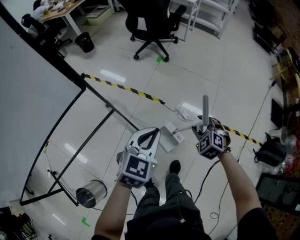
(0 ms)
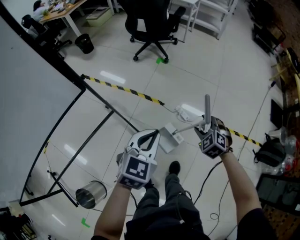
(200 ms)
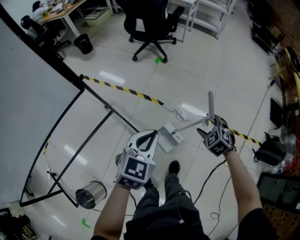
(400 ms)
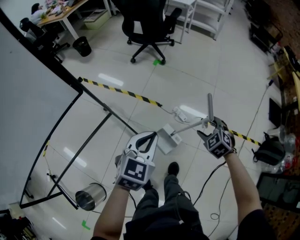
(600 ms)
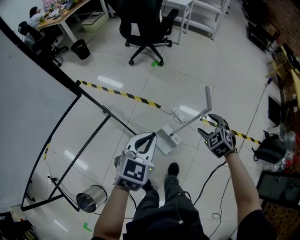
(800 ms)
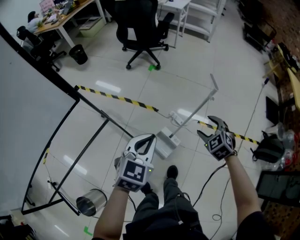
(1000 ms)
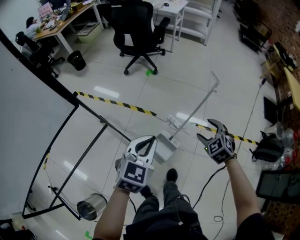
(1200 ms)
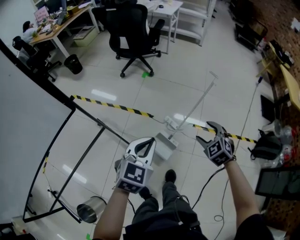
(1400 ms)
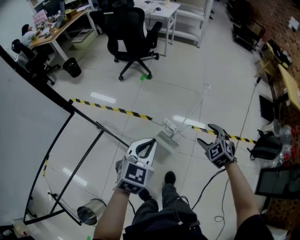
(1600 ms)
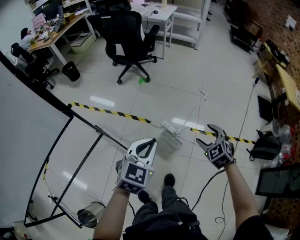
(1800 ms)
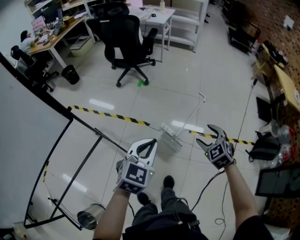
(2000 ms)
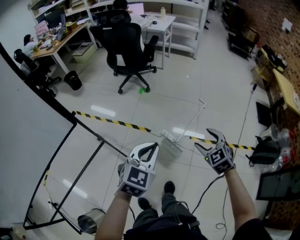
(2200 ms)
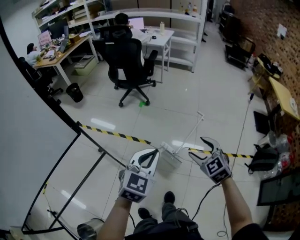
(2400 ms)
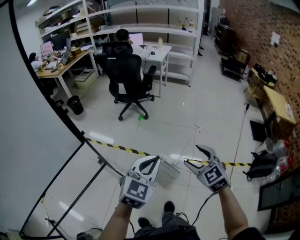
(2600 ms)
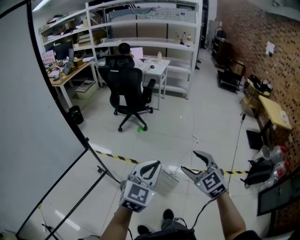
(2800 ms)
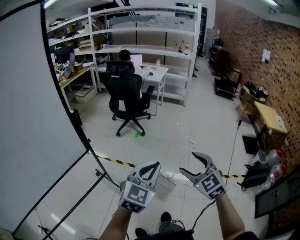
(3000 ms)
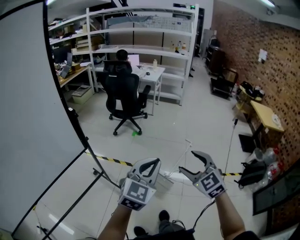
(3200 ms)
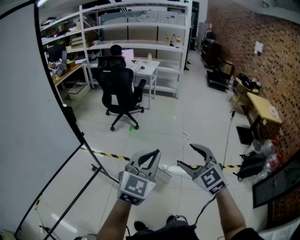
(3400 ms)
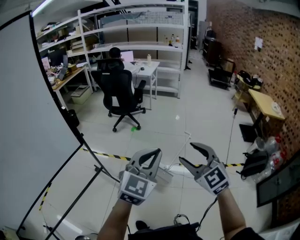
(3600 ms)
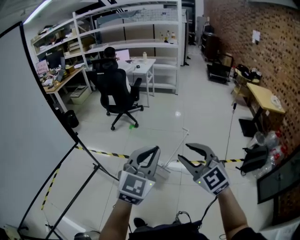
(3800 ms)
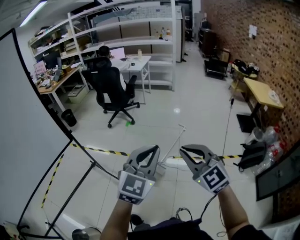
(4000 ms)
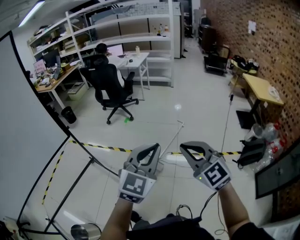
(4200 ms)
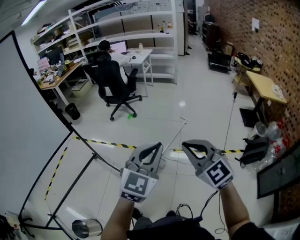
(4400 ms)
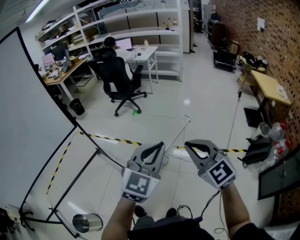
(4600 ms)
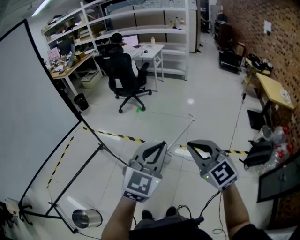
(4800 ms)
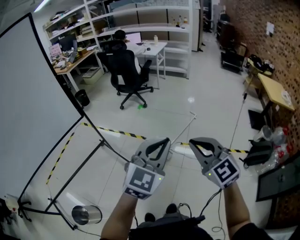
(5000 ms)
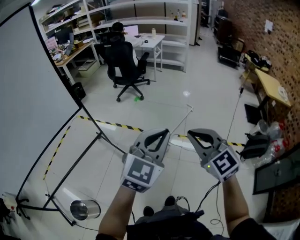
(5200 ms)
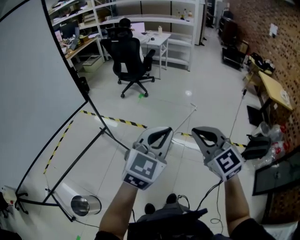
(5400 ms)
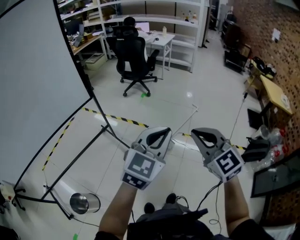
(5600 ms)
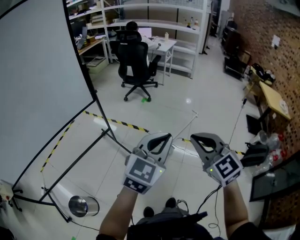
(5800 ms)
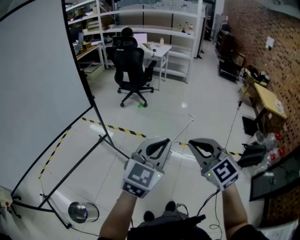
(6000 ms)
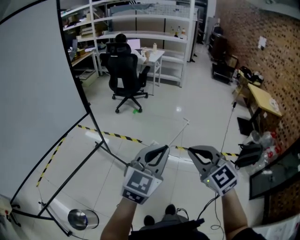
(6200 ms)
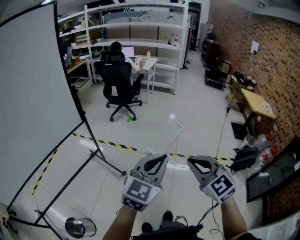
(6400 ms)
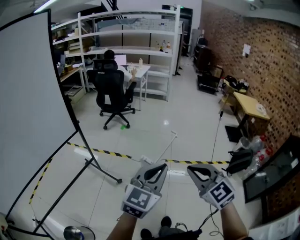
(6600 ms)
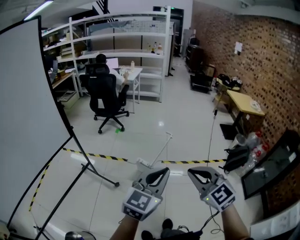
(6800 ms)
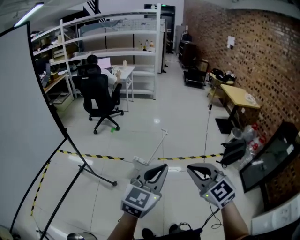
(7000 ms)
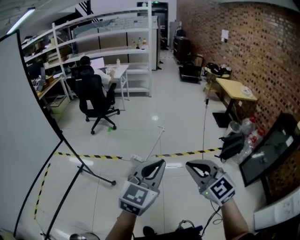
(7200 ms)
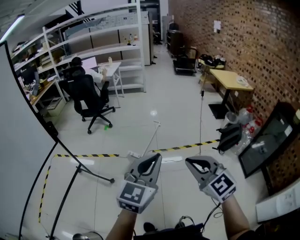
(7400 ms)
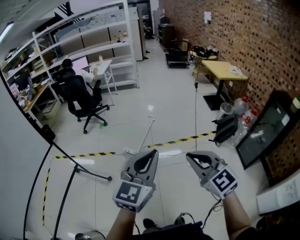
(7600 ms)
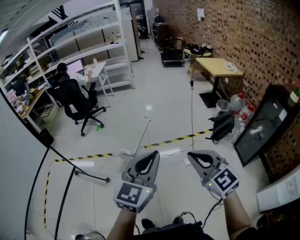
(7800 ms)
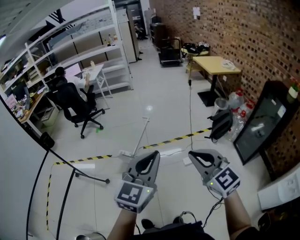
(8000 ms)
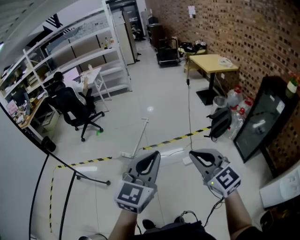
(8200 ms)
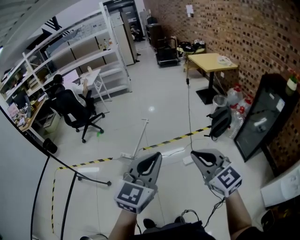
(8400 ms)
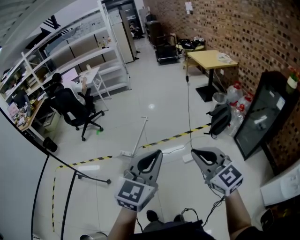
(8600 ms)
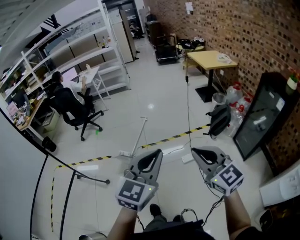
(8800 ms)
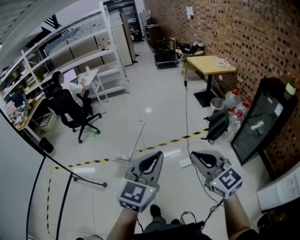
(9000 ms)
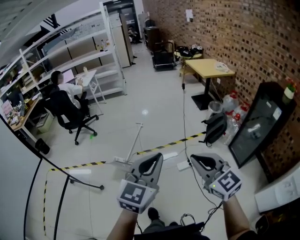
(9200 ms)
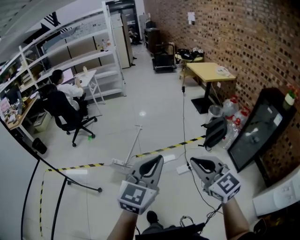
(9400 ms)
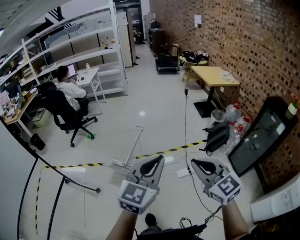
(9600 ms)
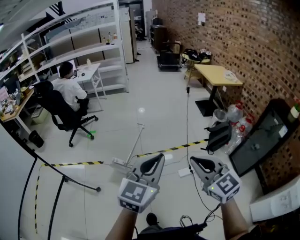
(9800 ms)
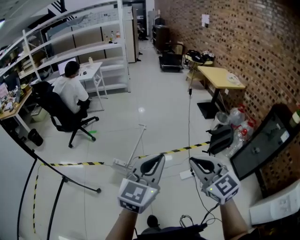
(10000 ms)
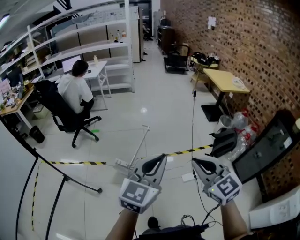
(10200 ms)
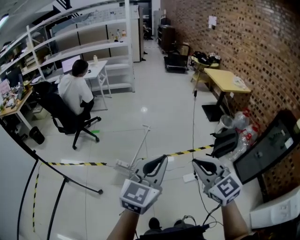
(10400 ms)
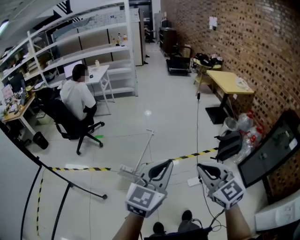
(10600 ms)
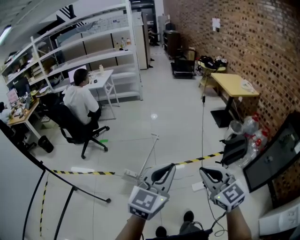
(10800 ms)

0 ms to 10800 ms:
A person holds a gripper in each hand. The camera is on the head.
0 ms to 1600 ms: The right gripper travels to the right and upward by approximately 15 cm. The left gripper moves to the right, approximately 5 cm.
1600 ms to 3000 ms: The two grippers go about 25 cm upward and backward. The right gripper changes its angle by some 20 degrees.
3000 ms to 4600 ms: Both grippers move to the right and backward, approximately 25 cm. The right gripper closes up.
4600 ms to 6200 ms: Both grippers travel together to the left and backward, some 15 cm.
6200 ms to 7800 ms: The two grippers go about 30 cm to the right. The right gripper swivels some 20 degrees.
7800 ms to 9200 ms: Both grippers move to the right, approximately 10 cm.
9200 ms to 10800 ms: The two grippers go roughly 20 cm forward and to the left.

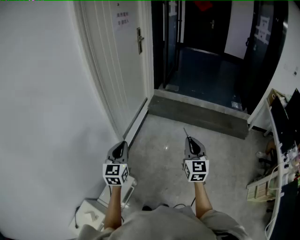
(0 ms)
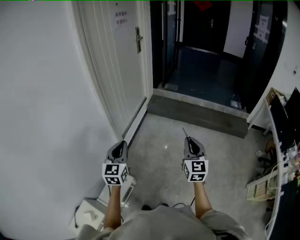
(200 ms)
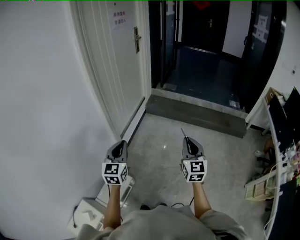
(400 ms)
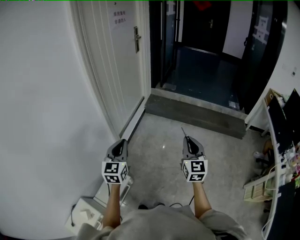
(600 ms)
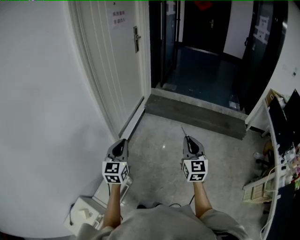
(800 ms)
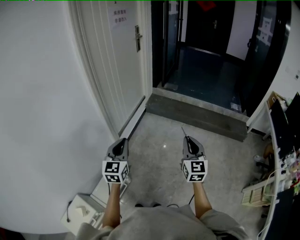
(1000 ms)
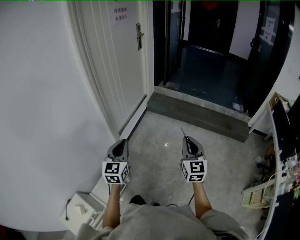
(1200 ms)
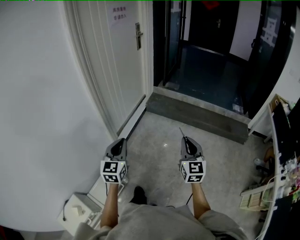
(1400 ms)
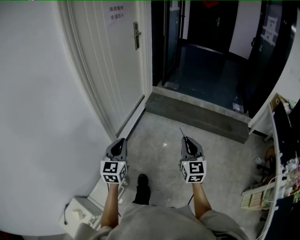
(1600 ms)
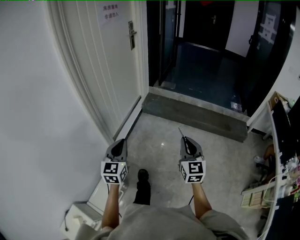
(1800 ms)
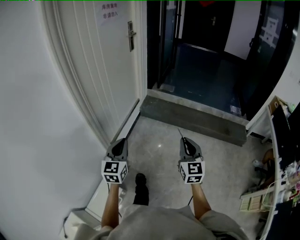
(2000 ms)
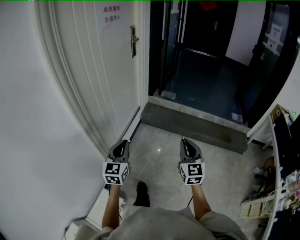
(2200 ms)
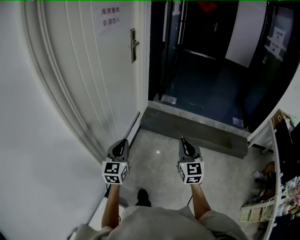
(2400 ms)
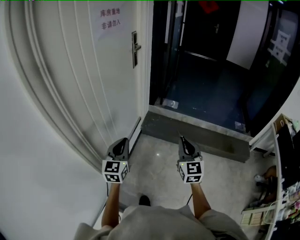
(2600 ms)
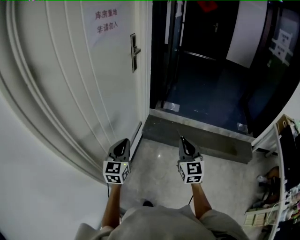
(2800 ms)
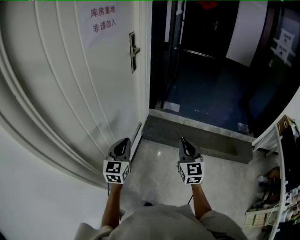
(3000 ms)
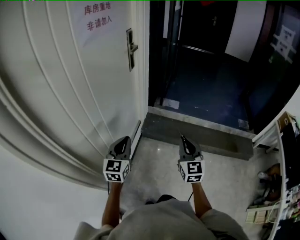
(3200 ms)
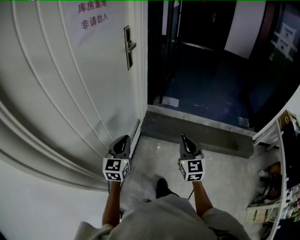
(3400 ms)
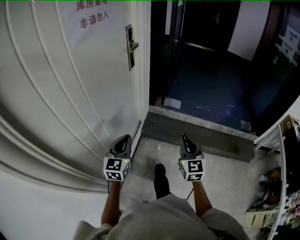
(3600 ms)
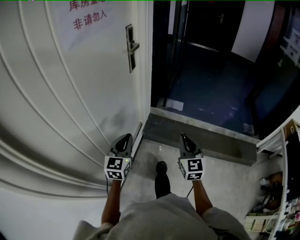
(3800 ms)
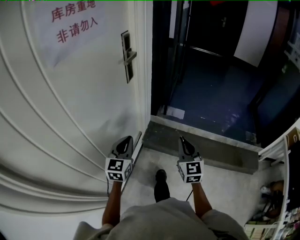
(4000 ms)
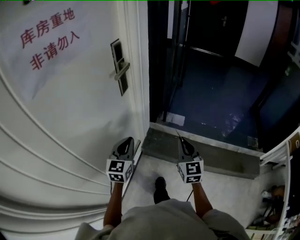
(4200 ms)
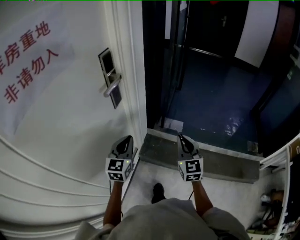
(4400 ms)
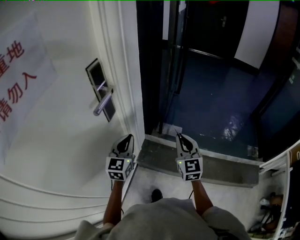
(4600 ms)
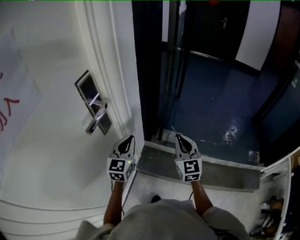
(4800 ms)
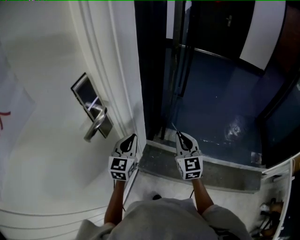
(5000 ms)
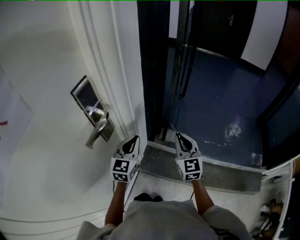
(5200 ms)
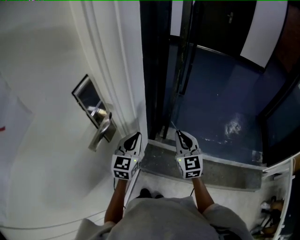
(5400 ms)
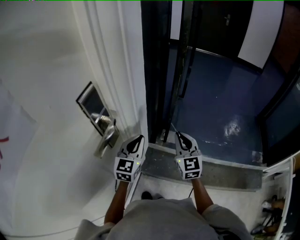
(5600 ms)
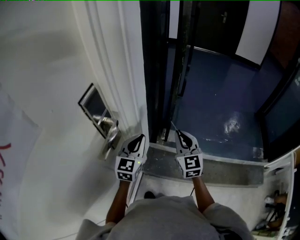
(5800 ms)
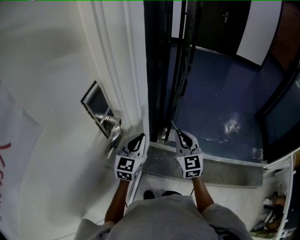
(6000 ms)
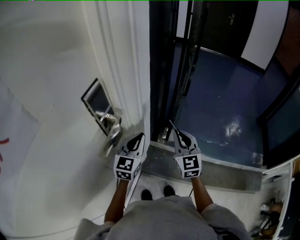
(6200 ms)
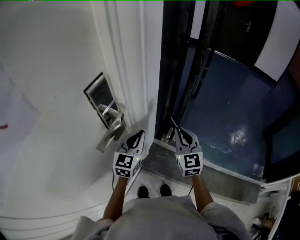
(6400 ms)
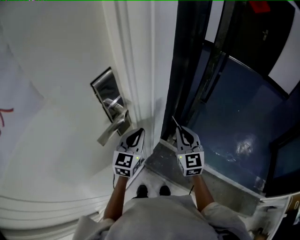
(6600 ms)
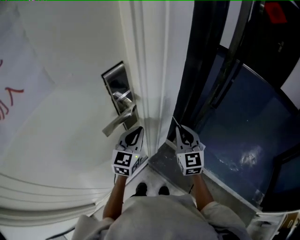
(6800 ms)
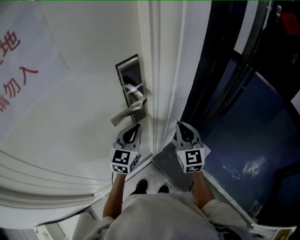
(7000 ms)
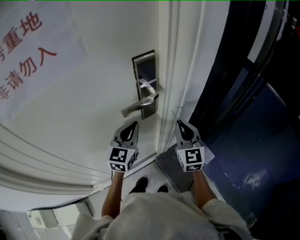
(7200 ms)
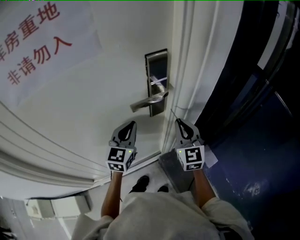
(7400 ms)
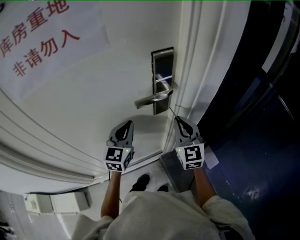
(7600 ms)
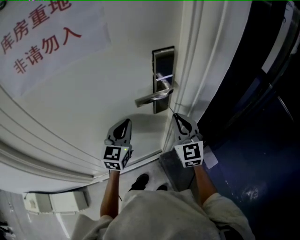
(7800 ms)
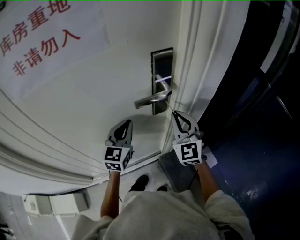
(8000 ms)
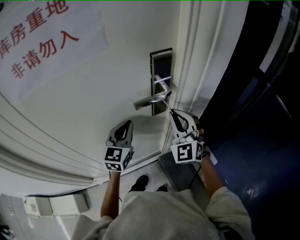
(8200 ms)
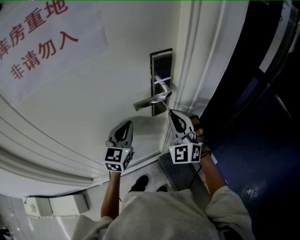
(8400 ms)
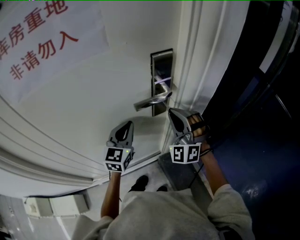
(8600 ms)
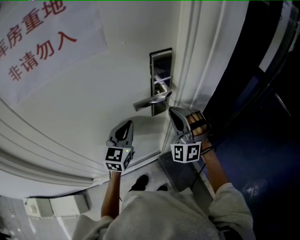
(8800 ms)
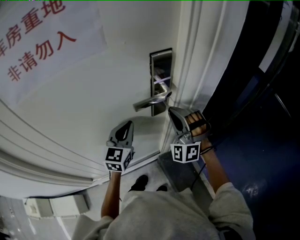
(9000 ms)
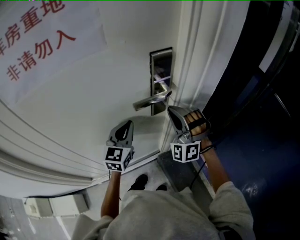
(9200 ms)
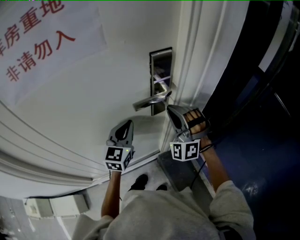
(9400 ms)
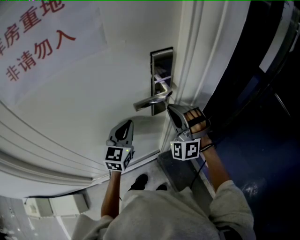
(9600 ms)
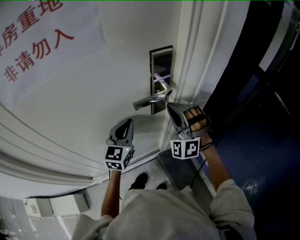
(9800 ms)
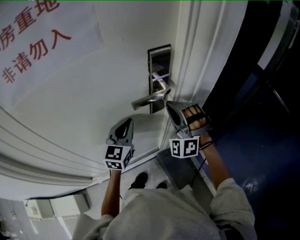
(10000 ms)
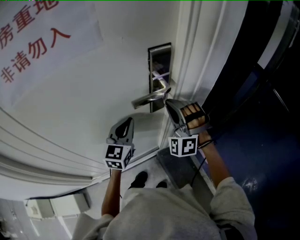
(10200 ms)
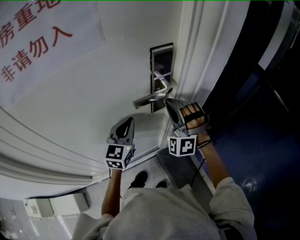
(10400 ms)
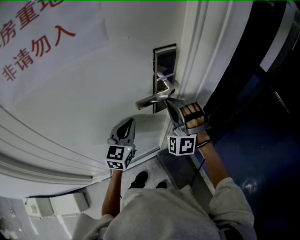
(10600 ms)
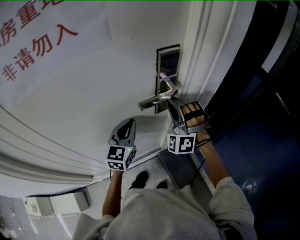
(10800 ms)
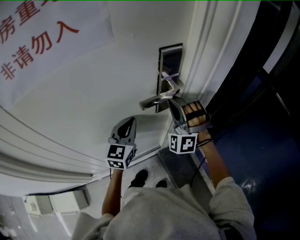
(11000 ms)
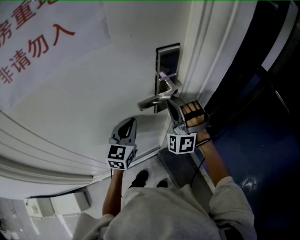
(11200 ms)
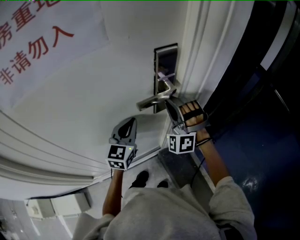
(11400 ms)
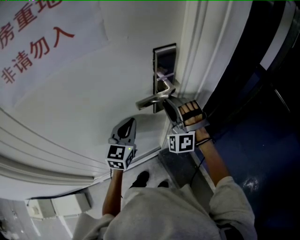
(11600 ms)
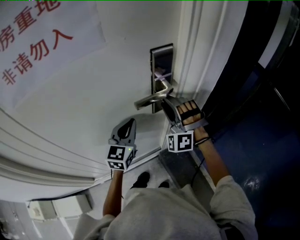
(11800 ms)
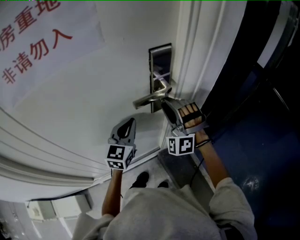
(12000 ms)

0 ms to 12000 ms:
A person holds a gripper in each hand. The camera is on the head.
0 ms to 1600 ms: The left gripper is displaced to the right and forward by approximately 10 cm. Meanwhile the right gripper shifts about 10 cm forward and to the right.
1600 ms to 3000 ms: Both grippers are carried forward, approximately 50 cm.
3000 ms to 4400 ms: Both grippers are carried forward, about 40 cm.
4400 ms to 6000 ms: The two grippers go roughly 25 cm forward.
6000 ms to 7600 ms: The left gripper moves roughly 20 cm, and swivels roughly 50 degrees. Meanwhile the right gripper ends up about 15 cm from where it was, and turns by roughly 50 degrees.
7600 ms to 9000 ms: The right gripper rolls counterclockwise, seen from behind, by approximately 70 degrees.
9000 ms to 10400 ms: There are only small adjustments of the grippers.
10400 ms to 12000 ms: The right gripper opens.

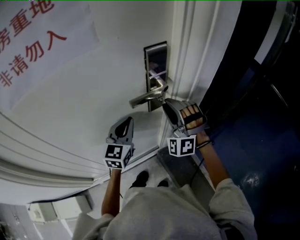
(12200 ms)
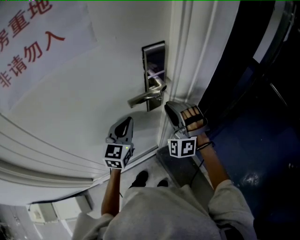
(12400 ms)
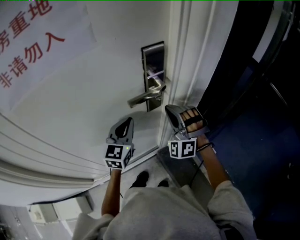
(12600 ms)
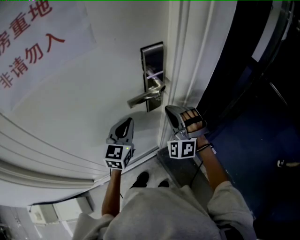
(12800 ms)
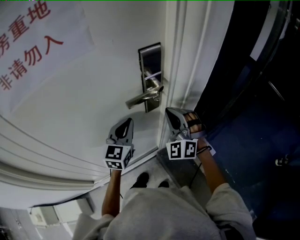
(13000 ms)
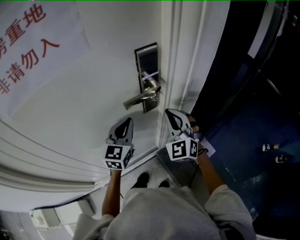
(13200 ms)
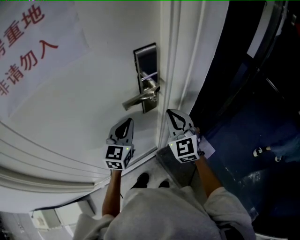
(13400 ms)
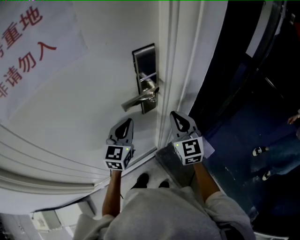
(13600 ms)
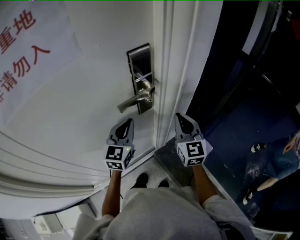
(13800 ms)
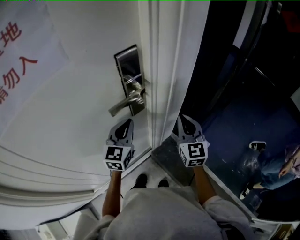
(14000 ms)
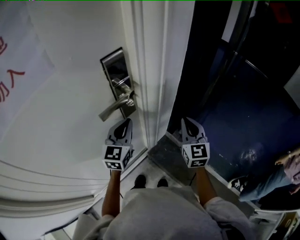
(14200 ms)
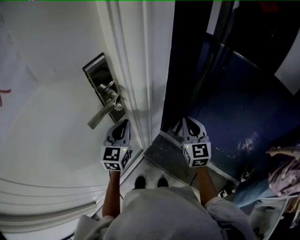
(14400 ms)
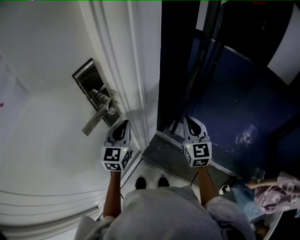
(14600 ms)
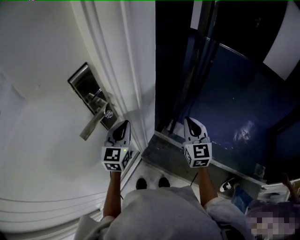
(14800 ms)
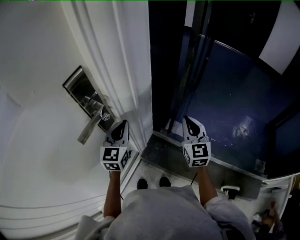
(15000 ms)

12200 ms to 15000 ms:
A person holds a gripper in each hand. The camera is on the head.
12200 ms to 13600 ms: The right gripper is displaced to the right by approximately 5 cm, twists some 70 degrees clockwise, seen from behind, and closes.
13600 ms to 15000 ms: The left gripper moves approximately 15 cm, and changes its angle by about 20 degrees. The right gripper shifts by some 20 cm, and changes its angle by approximately 40 degrees.
